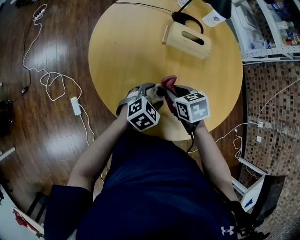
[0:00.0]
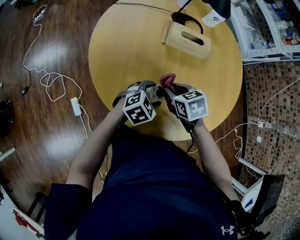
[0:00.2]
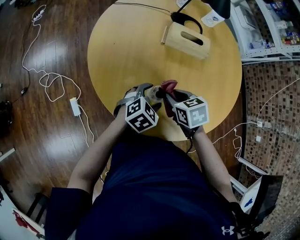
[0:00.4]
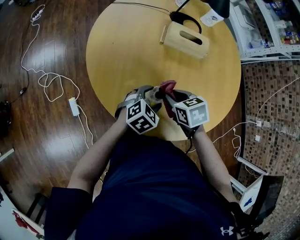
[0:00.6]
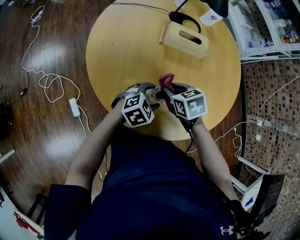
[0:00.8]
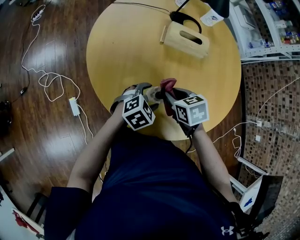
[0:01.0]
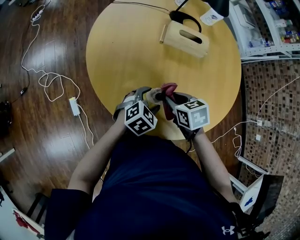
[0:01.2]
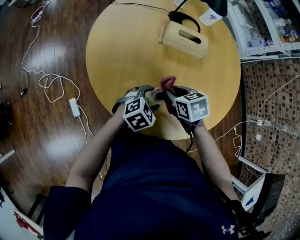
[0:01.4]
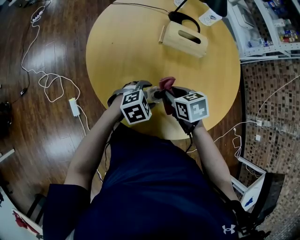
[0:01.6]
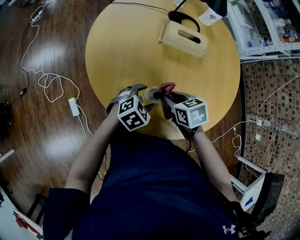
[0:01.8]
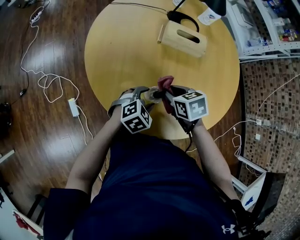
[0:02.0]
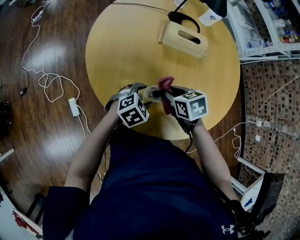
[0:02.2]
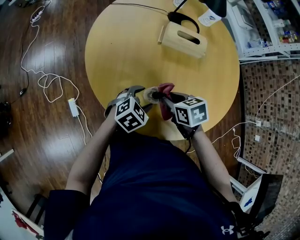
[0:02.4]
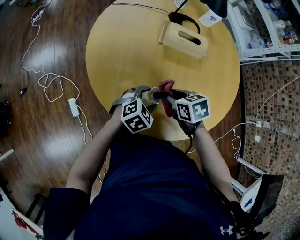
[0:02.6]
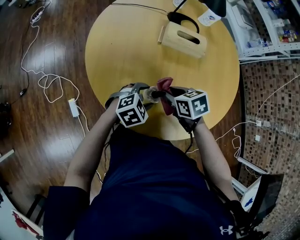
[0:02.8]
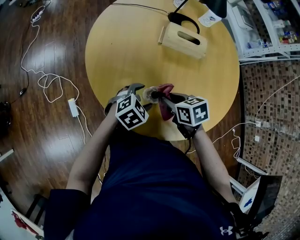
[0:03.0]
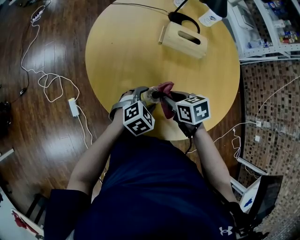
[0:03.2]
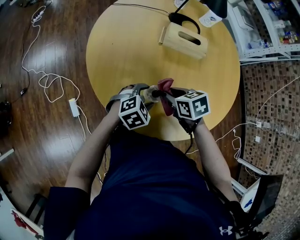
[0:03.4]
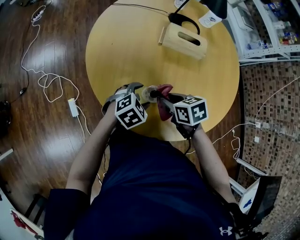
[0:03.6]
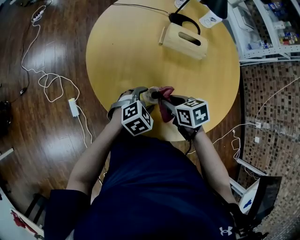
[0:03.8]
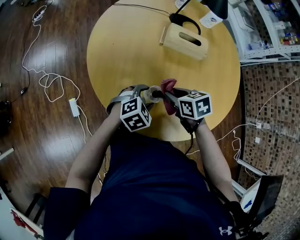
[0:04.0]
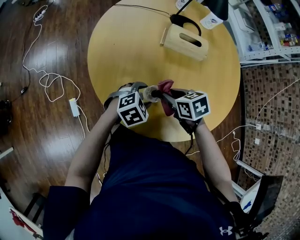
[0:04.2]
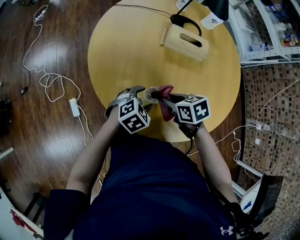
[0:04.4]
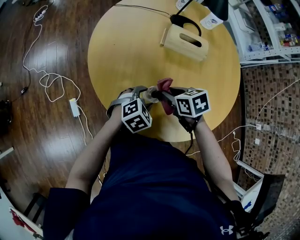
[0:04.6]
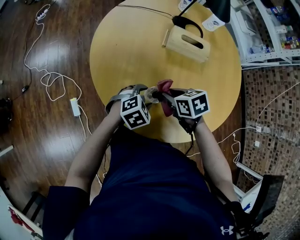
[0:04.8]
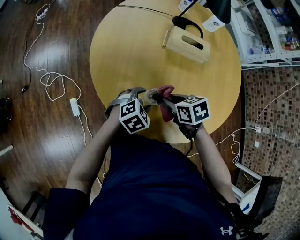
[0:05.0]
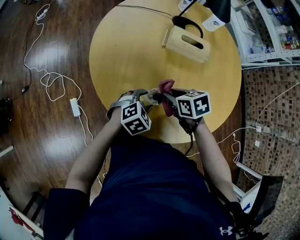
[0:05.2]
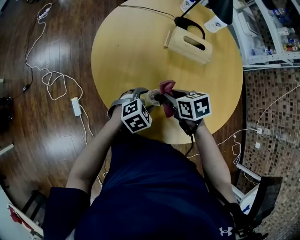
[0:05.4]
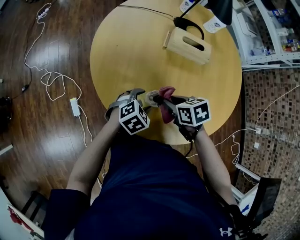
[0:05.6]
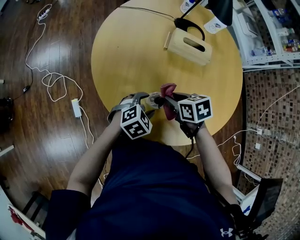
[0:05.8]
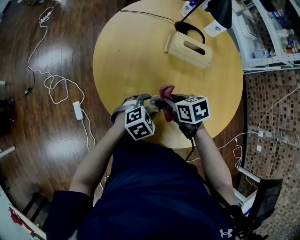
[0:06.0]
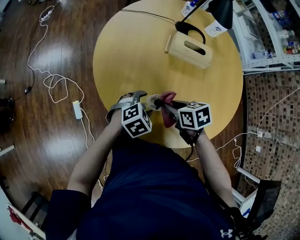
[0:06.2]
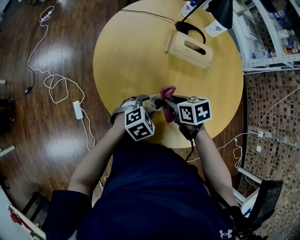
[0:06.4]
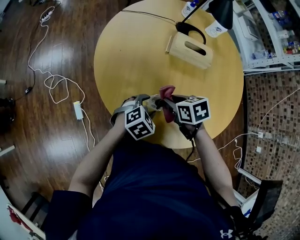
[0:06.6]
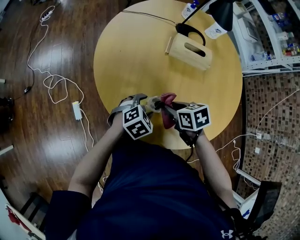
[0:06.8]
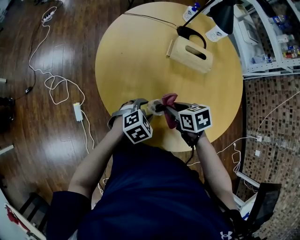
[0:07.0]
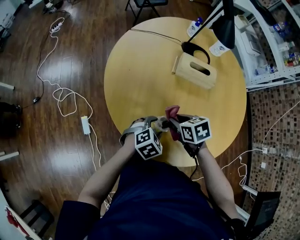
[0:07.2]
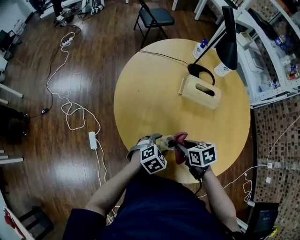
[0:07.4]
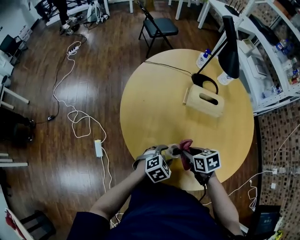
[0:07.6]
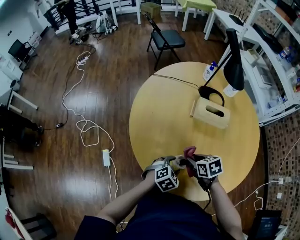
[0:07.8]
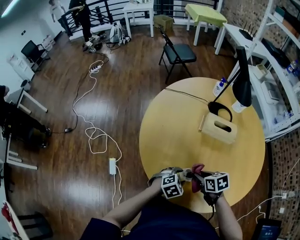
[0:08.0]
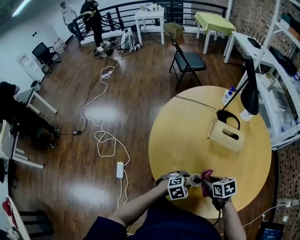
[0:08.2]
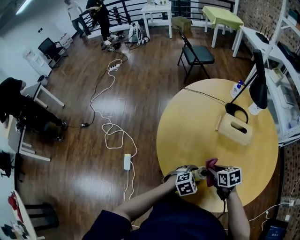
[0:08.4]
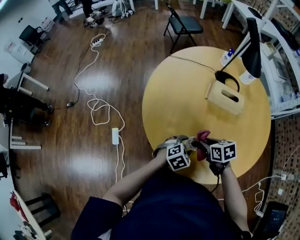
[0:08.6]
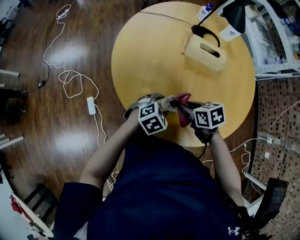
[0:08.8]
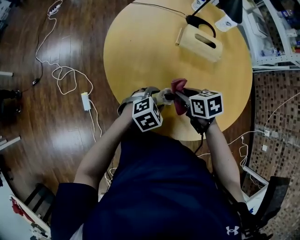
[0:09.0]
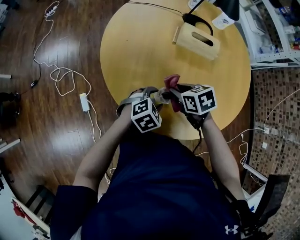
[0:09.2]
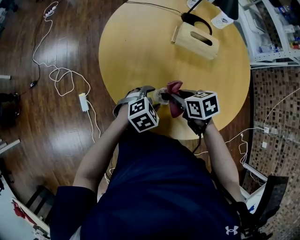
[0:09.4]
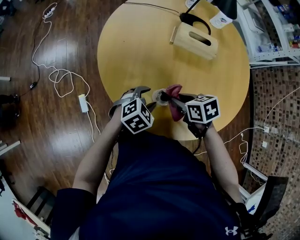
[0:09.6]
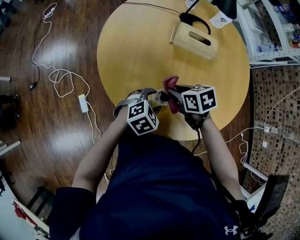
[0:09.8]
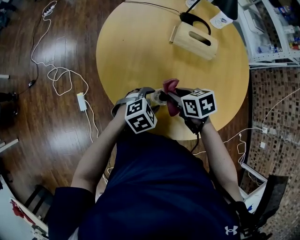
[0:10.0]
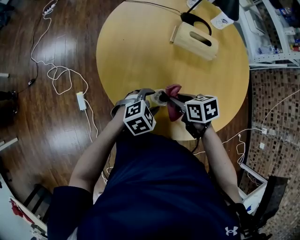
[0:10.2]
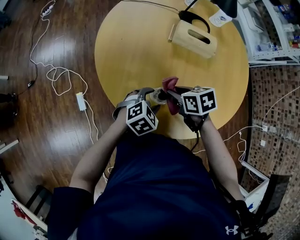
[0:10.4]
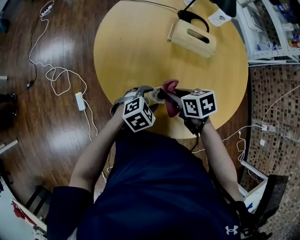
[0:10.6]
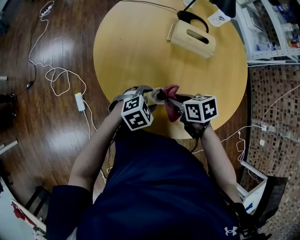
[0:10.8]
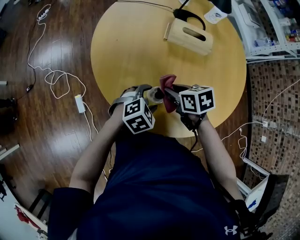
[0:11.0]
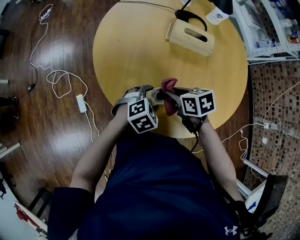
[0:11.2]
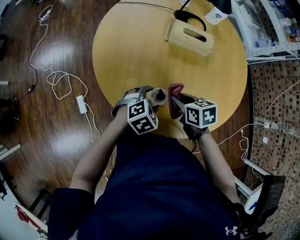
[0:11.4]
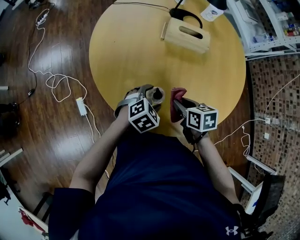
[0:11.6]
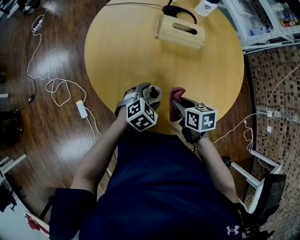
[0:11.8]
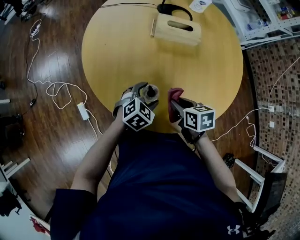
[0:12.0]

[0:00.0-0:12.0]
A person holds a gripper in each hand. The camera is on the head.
0:00.0 to 0:10.4: The grippers move only a little.
0:10.4 to 0:12.0: The right gripper moves roughly 10 cm, and swivels about 20 degrees.

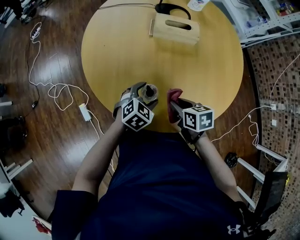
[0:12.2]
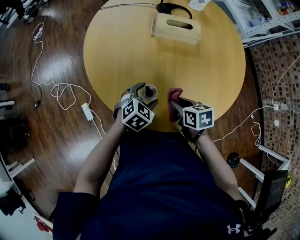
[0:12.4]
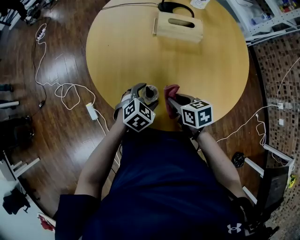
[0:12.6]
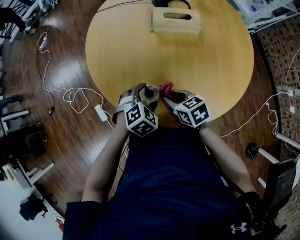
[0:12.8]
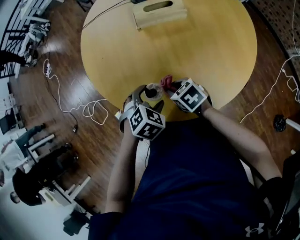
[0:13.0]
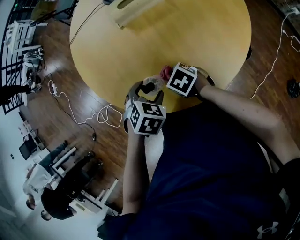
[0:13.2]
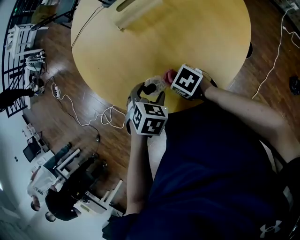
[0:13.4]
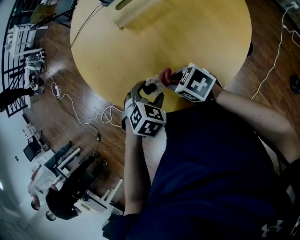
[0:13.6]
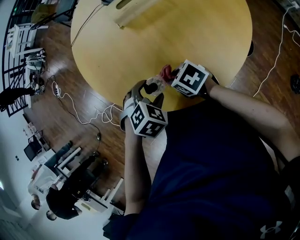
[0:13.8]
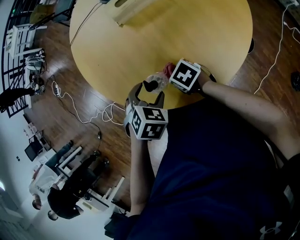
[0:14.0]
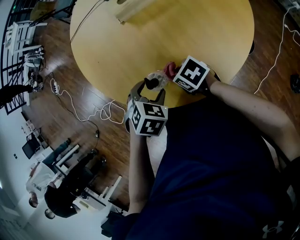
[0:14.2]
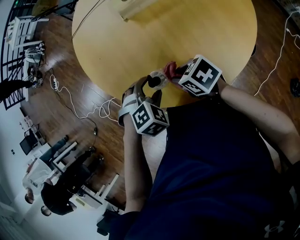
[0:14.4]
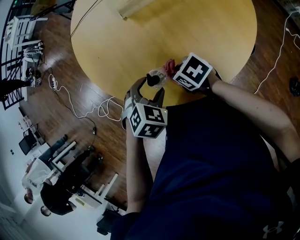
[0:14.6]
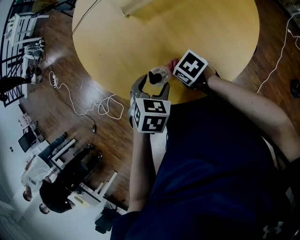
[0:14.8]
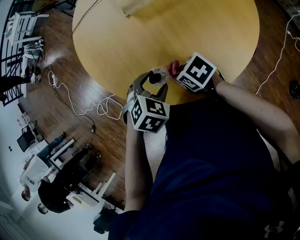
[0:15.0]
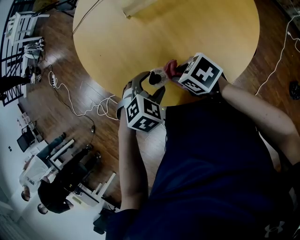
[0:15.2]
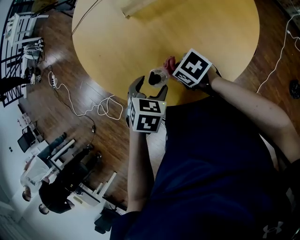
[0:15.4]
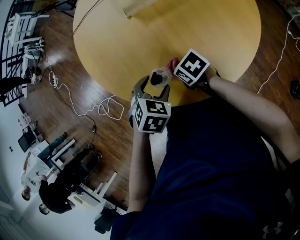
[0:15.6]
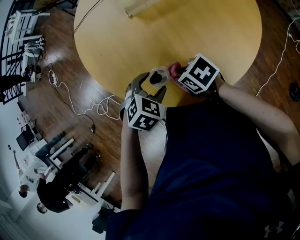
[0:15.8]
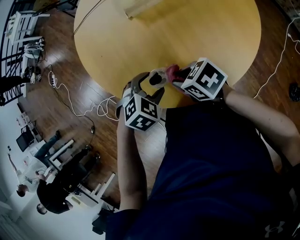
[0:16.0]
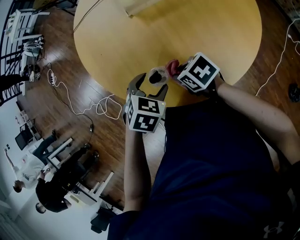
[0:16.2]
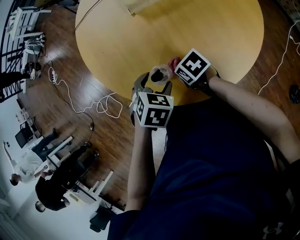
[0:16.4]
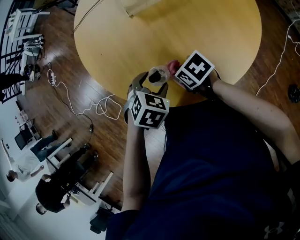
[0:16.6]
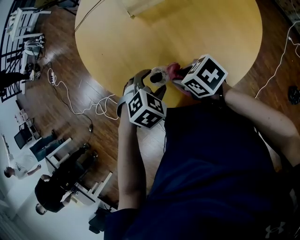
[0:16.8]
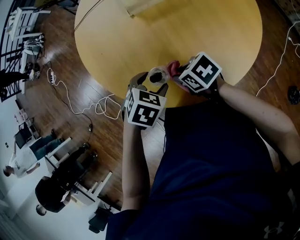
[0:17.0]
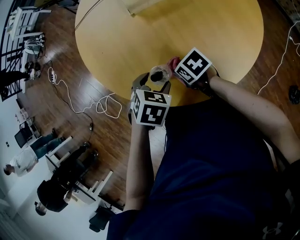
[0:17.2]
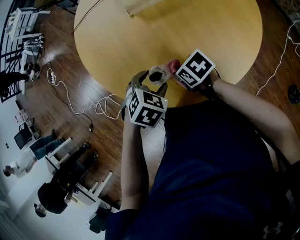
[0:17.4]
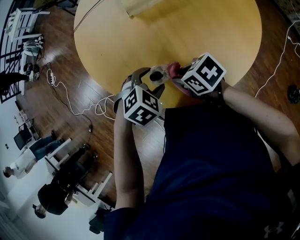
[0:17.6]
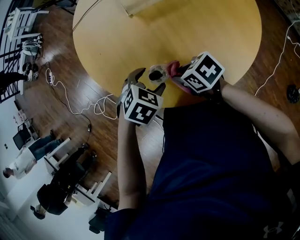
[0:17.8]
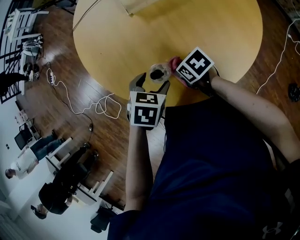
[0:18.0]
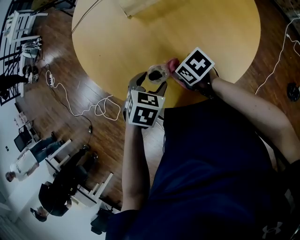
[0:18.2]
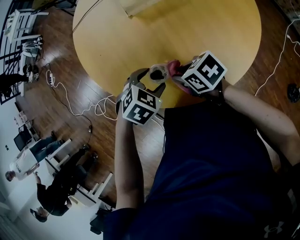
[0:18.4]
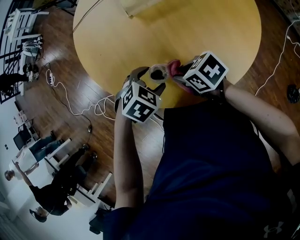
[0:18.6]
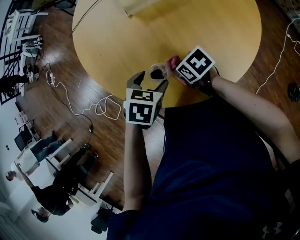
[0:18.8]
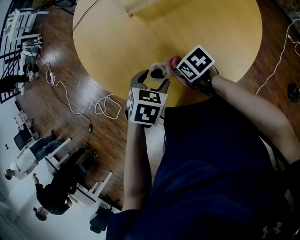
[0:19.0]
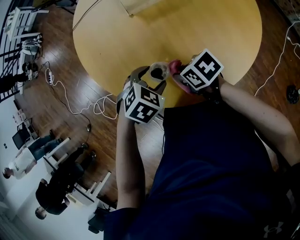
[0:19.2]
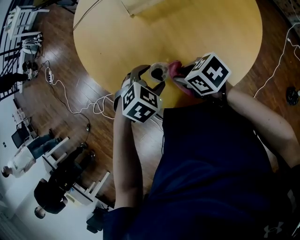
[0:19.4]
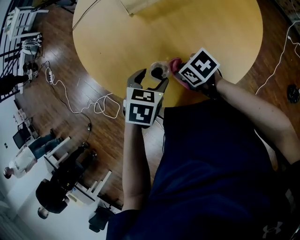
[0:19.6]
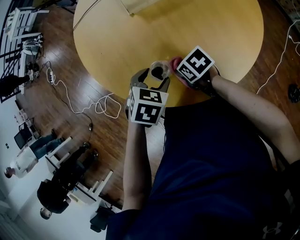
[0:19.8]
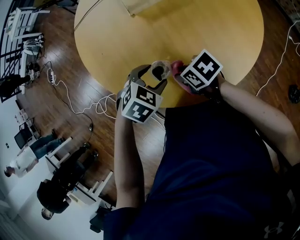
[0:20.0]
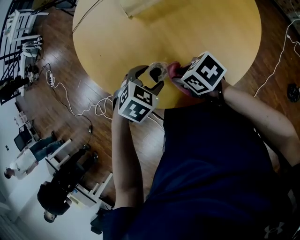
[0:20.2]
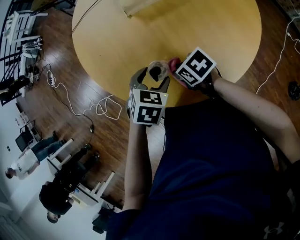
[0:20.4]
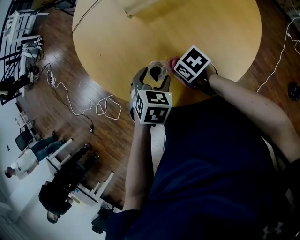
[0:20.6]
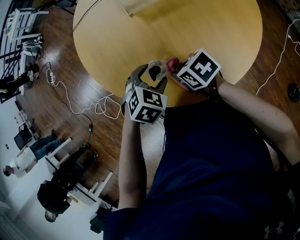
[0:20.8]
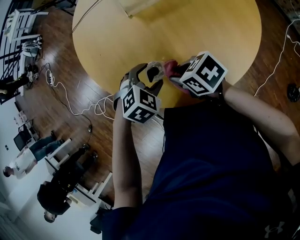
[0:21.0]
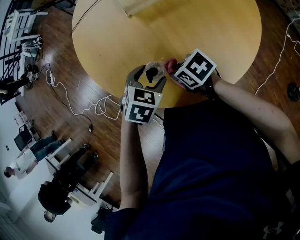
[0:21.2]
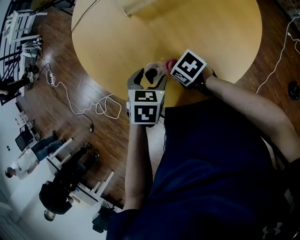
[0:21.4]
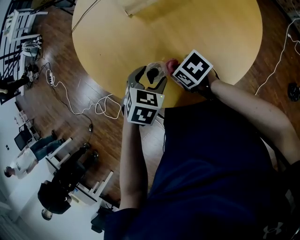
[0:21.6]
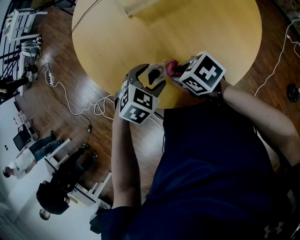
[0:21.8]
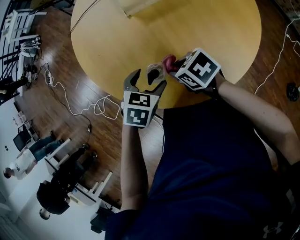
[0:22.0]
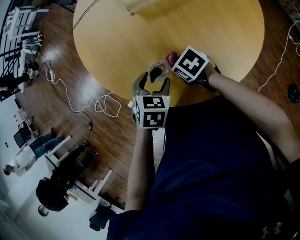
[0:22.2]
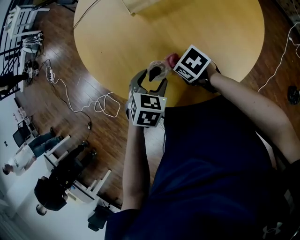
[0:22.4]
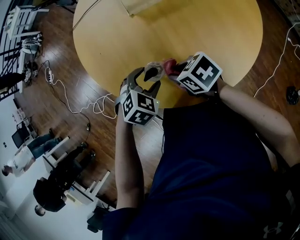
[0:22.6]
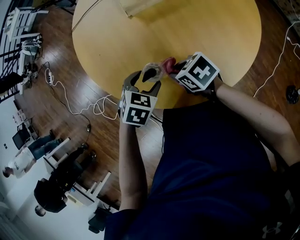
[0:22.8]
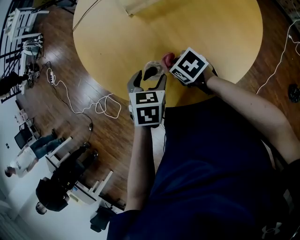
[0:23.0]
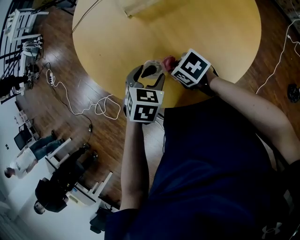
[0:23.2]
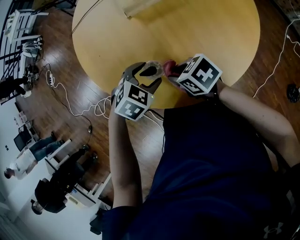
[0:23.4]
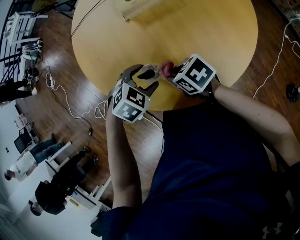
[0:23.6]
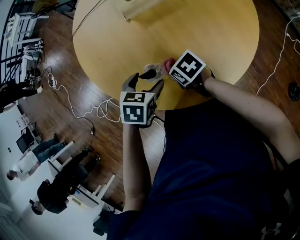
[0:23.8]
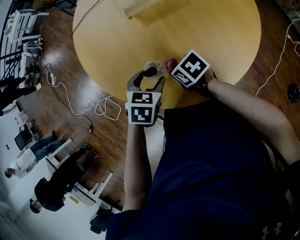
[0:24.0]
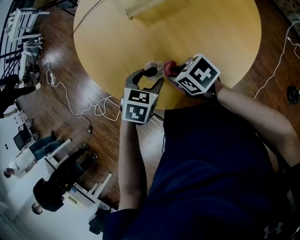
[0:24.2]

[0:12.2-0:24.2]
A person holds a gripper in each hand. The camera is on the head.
0:12.2 to 0:13.8: The left gripper changes place by approximately 5 cm, and rotates roughly 30 degrees, while the right gripper is displaced to the left by about 10 cm.
0:13.8 to 0:15.2: The right gripper goes up and down, about 10 cm each way, reversing 2 times.
0:15.2 to 0:16.6: The right gripper goes up and down, some 10 cm each way, reversing 2 times.
0:16.6 to 0:18.2: The right gripper swings up and down, some 10 cm each way, with 3 reversals.
0:18.2 to 0:19.8: The right gripper moves up and down over roughly 10 cm, changing direction 3 times.
0:19.8 to 0:21.2: The right gripper goes up and down, roughly 10 cm each way, reversing 3 times.
0:21.2 to 0:22.6: The right gripper swings up and down, some 10 cm each way, with 3 reversals.
0:22.6 to 0:24.2: The left gripper swivels about 20 degrees. The right gripper swings up and down, about 10 cm each way, with 3 reversals.
